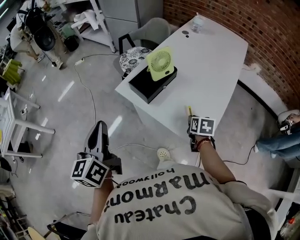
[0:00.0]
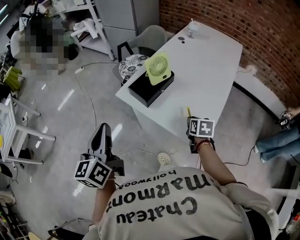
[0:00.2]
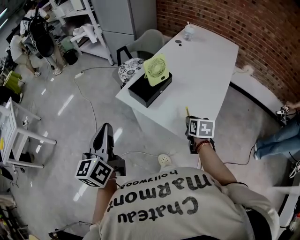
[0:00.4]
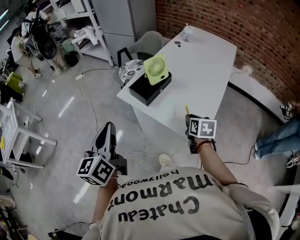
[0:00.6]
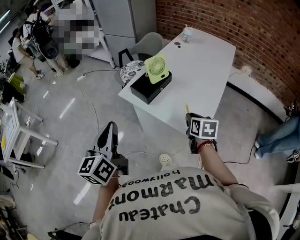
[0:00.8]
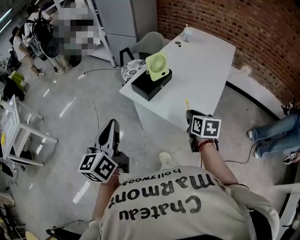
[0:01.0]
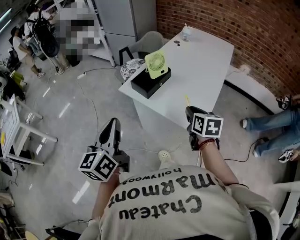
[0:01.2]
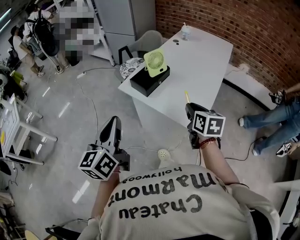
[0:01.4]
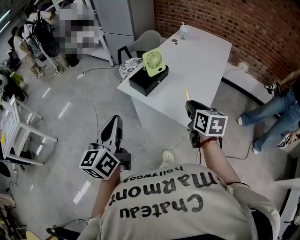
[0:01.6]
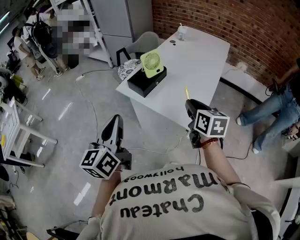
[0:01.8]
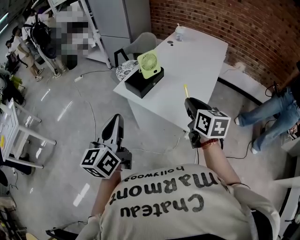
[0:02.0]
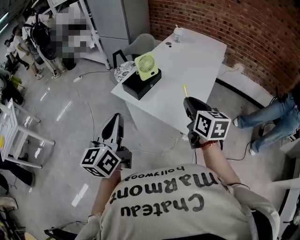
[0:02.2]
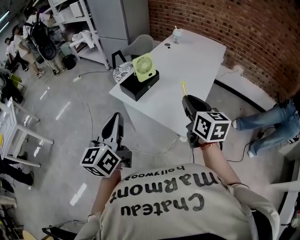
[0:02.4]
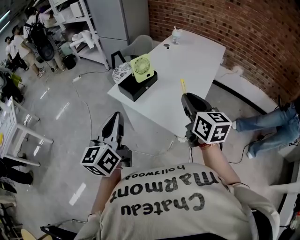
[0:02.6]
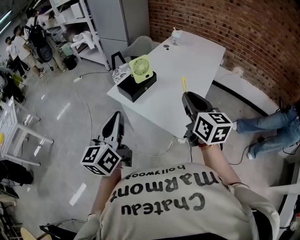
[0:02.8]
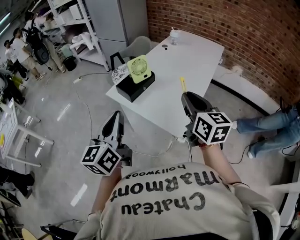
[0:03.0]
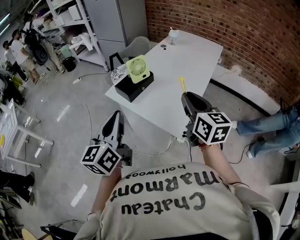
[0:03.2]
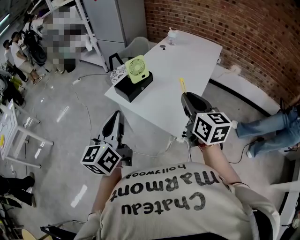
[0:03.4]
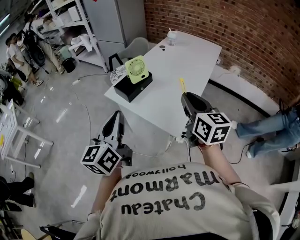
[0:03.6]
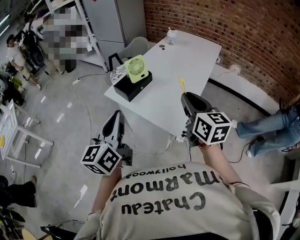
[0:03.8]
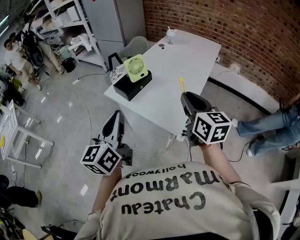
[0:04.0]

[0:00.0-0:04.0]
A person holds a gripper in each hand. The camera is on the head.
0:00.0 to 0:01.4: The left gripper goes approximately 10 cm backward. Meanwhile the right gripper shifts roughly 20 cm upward and backward, and changes its angle by approximately 20 degrees.
0:01.4 to 0:02.6: The left gripper heads to the right, covering some 10 cm; the right gripper travels upward and to the right by approximately 15 cm.
0:02.6 to 0:04.0: The grippers move only a little.

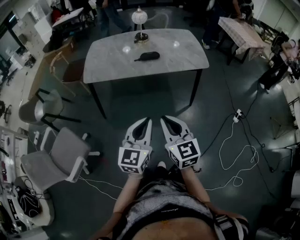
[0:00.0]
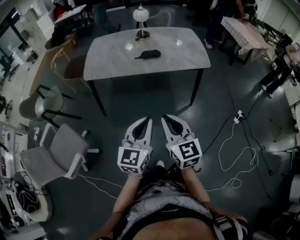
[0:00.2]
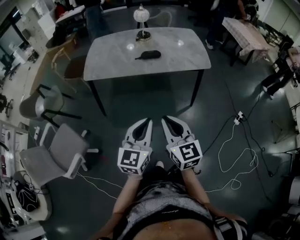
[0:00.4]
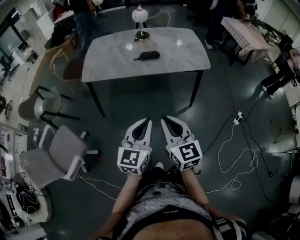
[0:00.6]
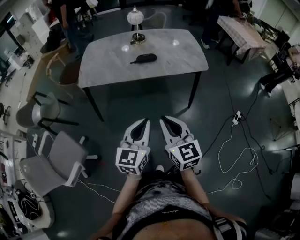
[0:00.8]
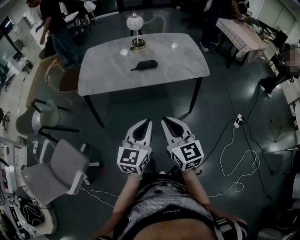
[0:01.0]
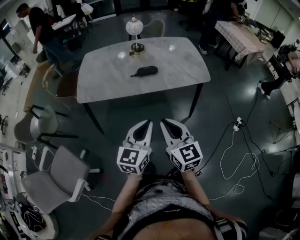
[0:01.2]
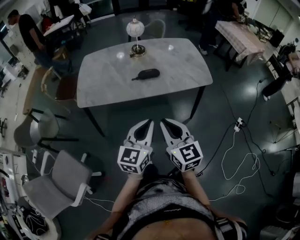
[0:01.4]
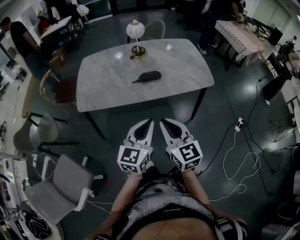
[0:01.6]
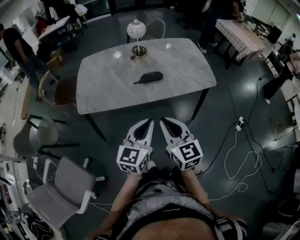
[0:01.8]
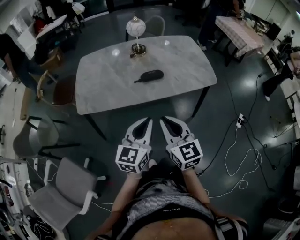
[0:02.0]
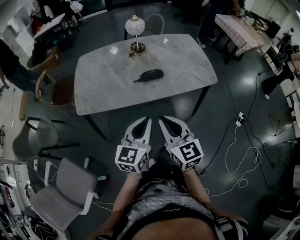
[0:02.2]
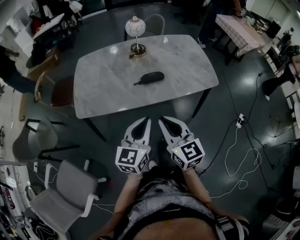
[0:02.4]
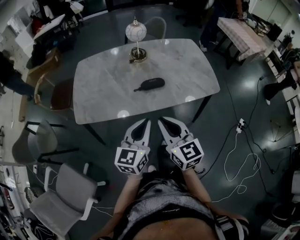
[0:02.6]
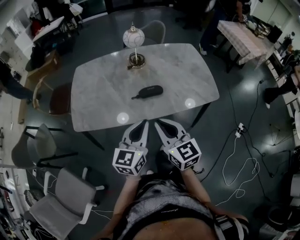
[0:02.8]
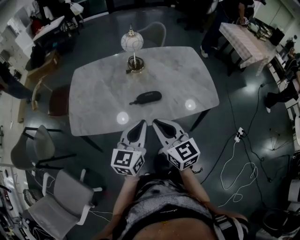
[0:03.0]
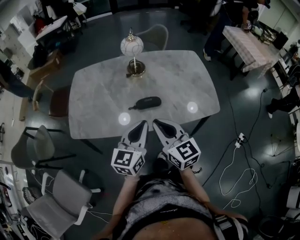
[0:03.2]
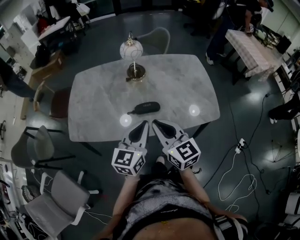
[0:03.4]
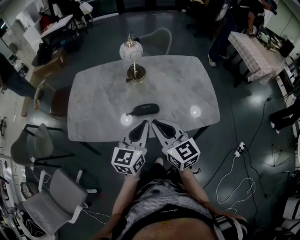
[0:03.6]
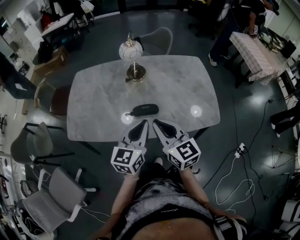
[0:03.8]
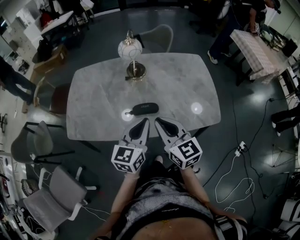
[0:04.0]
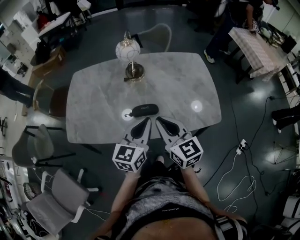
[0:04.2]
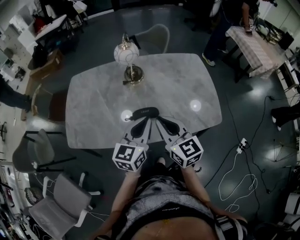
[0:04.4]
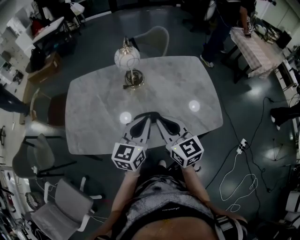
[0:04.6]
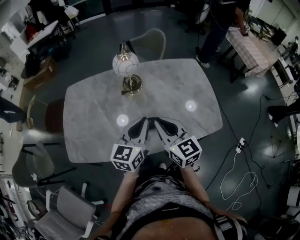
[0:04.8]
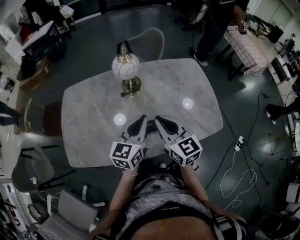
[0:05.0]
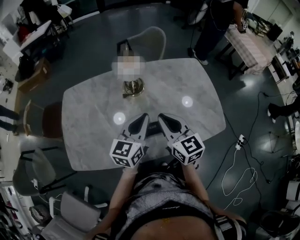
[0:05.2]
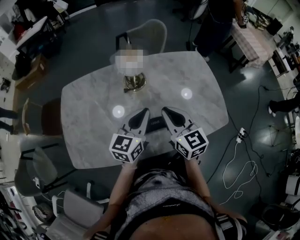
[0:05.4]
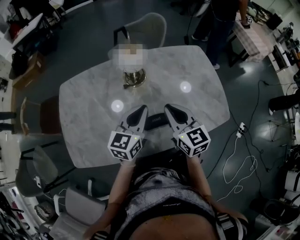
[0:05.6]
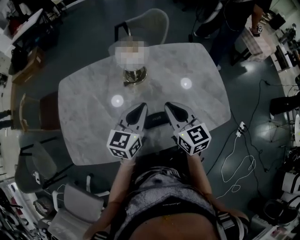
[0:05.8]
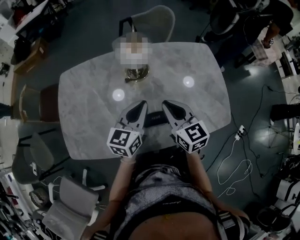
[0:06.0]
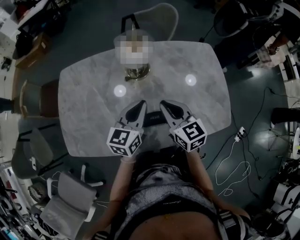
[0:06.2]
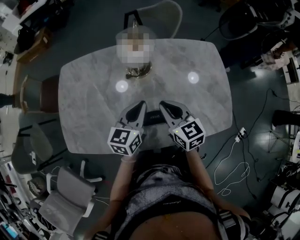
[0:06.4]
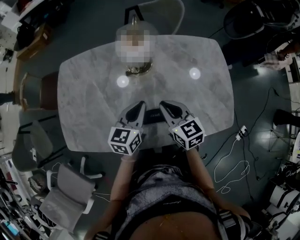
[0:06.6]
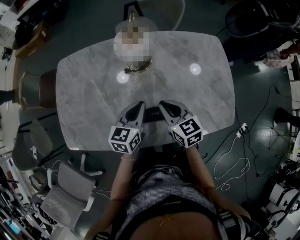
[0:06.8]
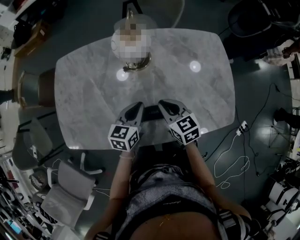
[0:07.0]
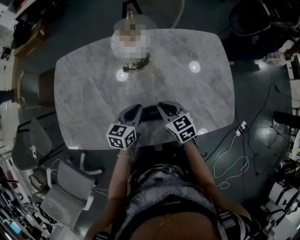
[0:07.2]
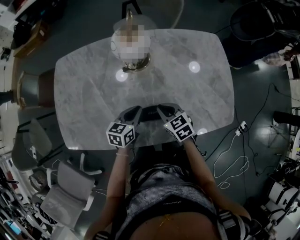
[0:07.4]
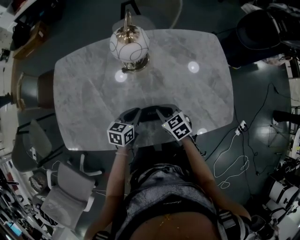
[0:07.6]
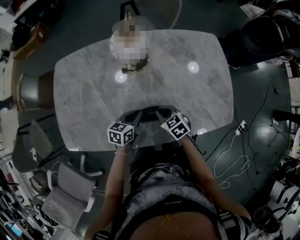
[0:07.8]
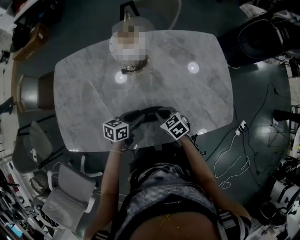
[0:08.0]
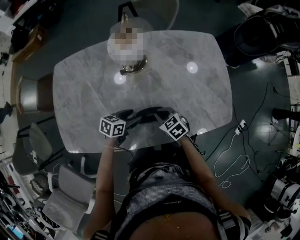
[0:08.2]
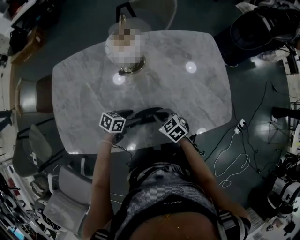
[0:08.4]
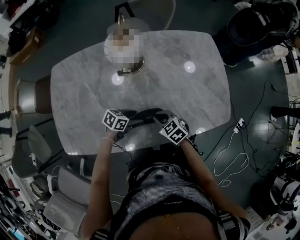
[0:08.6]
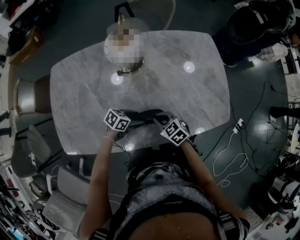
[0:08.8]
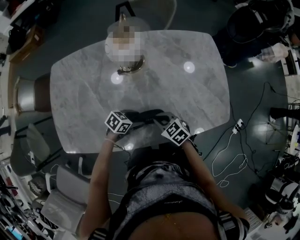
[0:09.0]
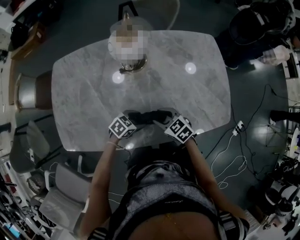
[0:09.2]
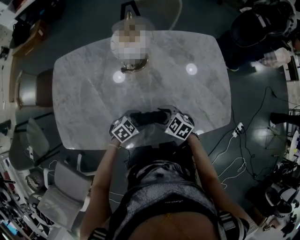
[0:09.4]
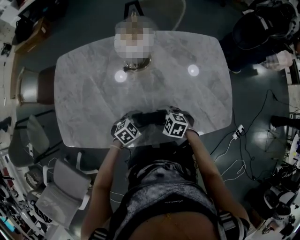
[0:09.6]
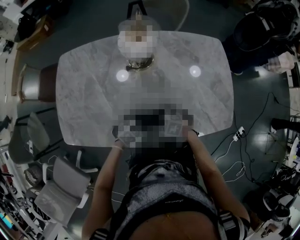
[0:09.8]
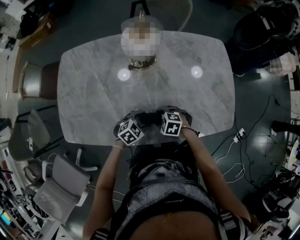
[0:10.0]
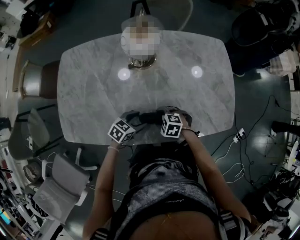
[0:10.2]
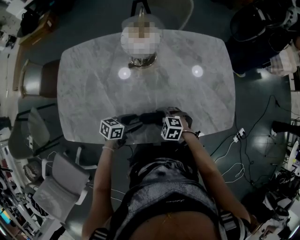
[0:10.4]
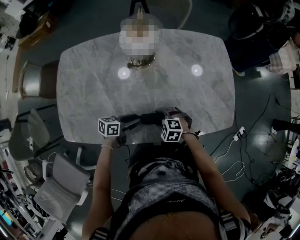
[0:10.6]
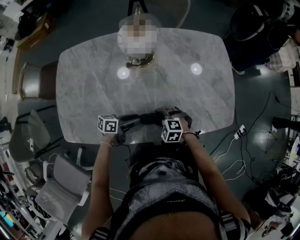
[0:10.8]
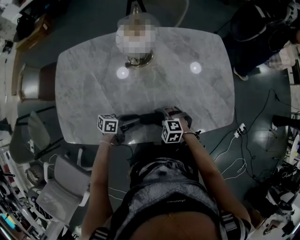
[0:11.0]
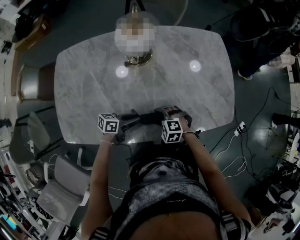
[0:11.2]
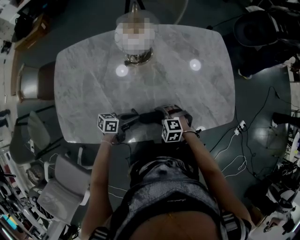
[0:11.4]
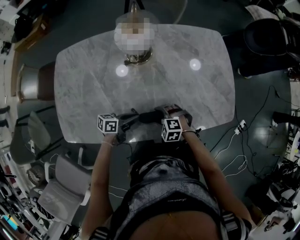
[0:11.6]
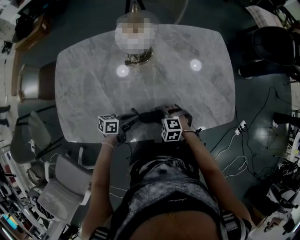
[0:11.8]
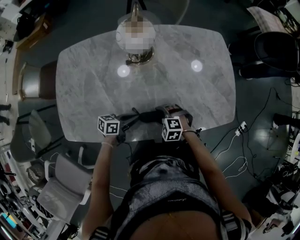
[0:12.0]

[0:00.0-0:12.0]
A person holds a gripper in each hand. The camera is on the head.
0:00.0 to 0:01.6: The grippers both shift forward by some 20 cm.
0:01.6 to 0:03.0: The grippers both shift forward by some 20 cm.
0:03.0 to 0:04.4: The two grippers go approximately 15 cm forward and to the right.
0:04.4 to 0:06.0: The left gripper travels forward and to the left by approximately 20 cm, while the right gripper moves forward, some 15 cm.
0:06.0 to 0:07.6: The two grippers go approximately 20 cm downward. The right gripper turns by some 30 degrees, while the left gripper swivels roughly 30 degrees.
0:07.6 to 0:09.0: The left gripper goes roughly 5 cm downward, turns by roughly 40 degrees, and opens up.
0:09.0 to 0:10.4: The right gripper heads downward, covering about 5 cm, rotates approximately 40 degrees, and opens up; the left gripper ends up some 5 cm from where it was, and rotates some 30 degrees.
0:10.4 to 0:12.0: The left gripper closes up.

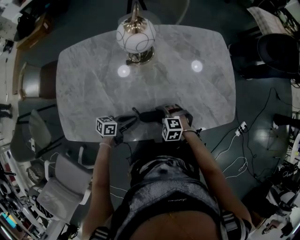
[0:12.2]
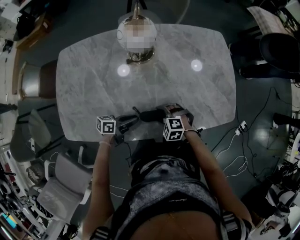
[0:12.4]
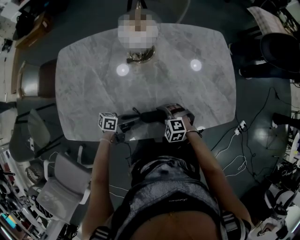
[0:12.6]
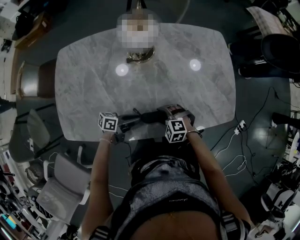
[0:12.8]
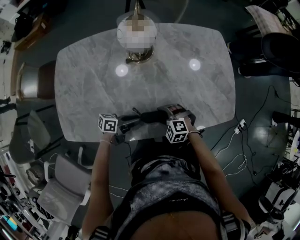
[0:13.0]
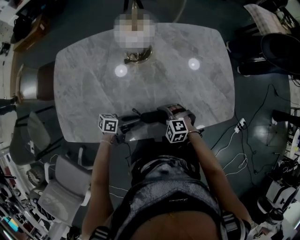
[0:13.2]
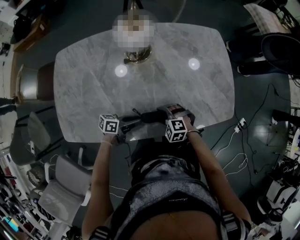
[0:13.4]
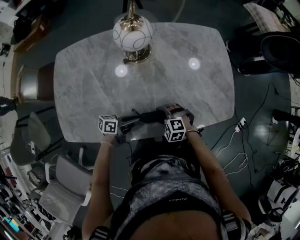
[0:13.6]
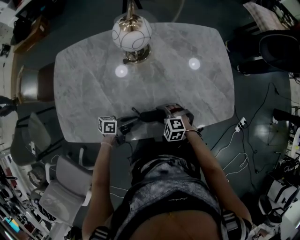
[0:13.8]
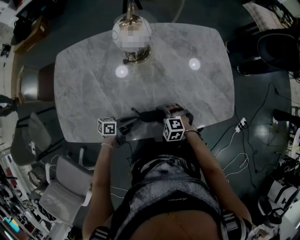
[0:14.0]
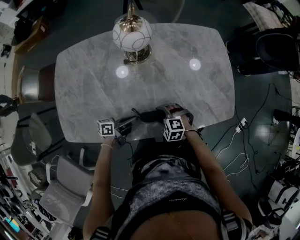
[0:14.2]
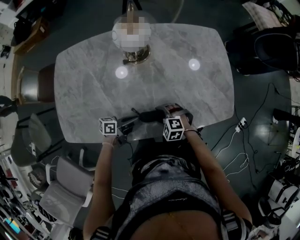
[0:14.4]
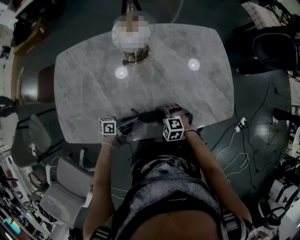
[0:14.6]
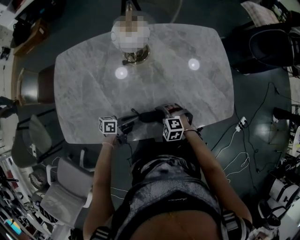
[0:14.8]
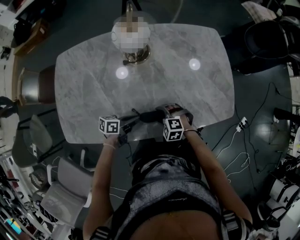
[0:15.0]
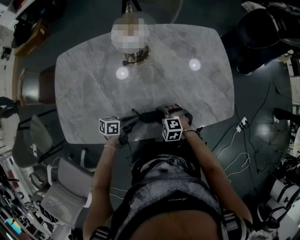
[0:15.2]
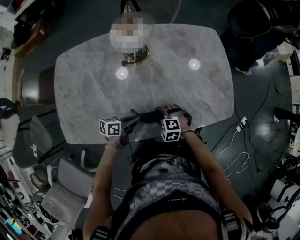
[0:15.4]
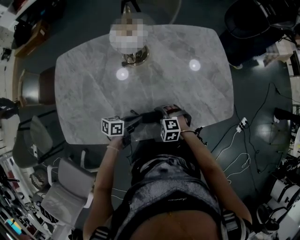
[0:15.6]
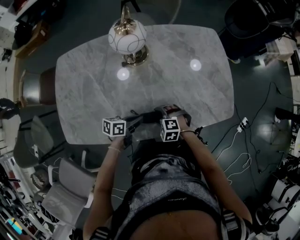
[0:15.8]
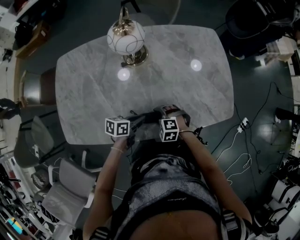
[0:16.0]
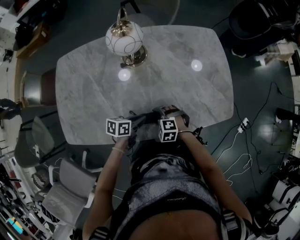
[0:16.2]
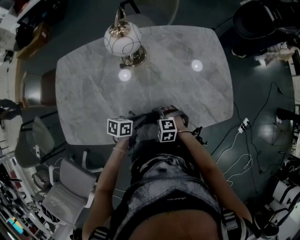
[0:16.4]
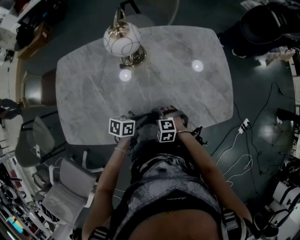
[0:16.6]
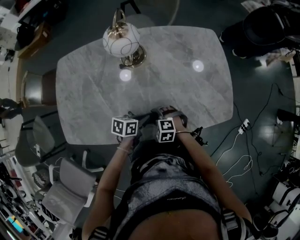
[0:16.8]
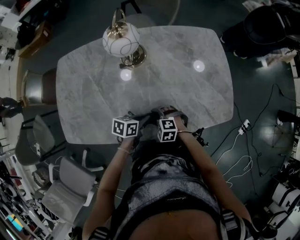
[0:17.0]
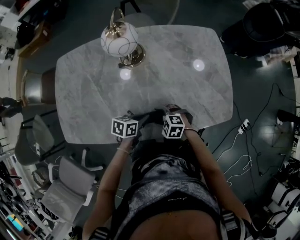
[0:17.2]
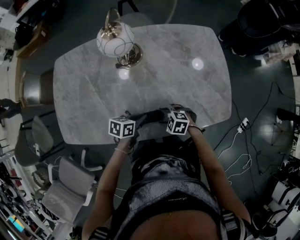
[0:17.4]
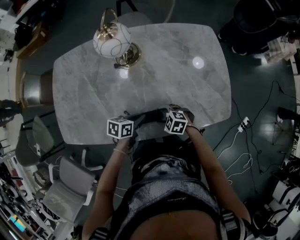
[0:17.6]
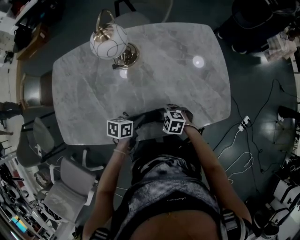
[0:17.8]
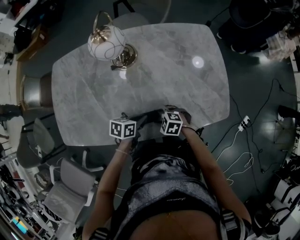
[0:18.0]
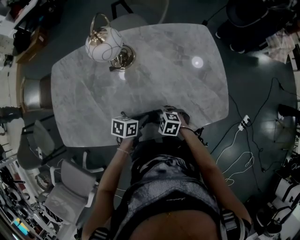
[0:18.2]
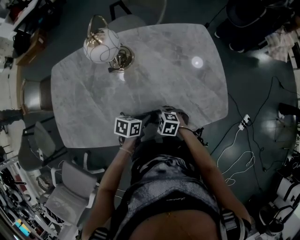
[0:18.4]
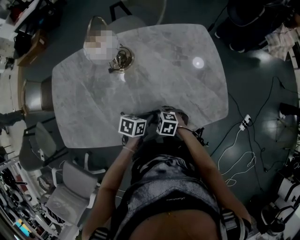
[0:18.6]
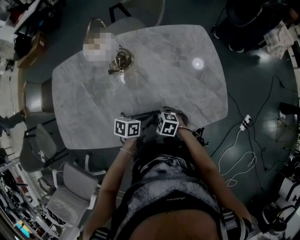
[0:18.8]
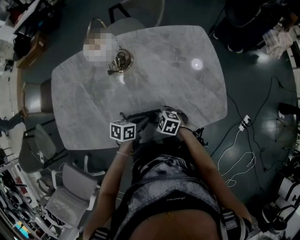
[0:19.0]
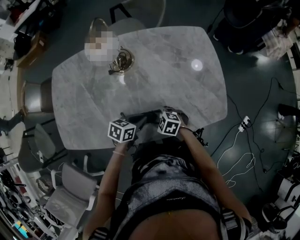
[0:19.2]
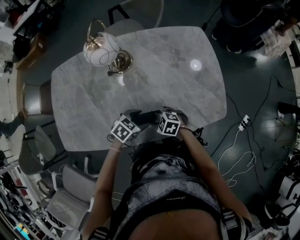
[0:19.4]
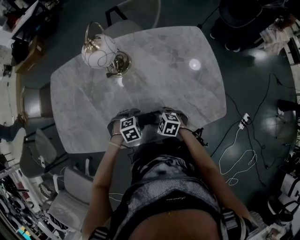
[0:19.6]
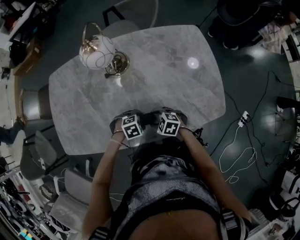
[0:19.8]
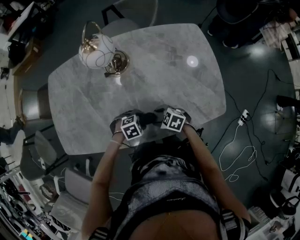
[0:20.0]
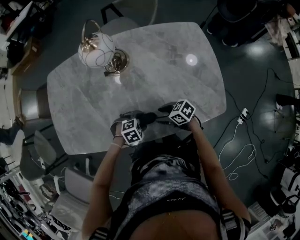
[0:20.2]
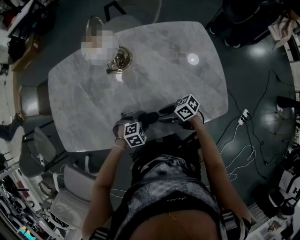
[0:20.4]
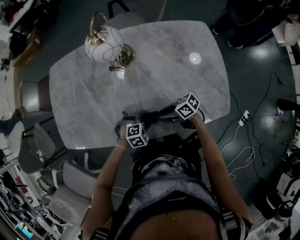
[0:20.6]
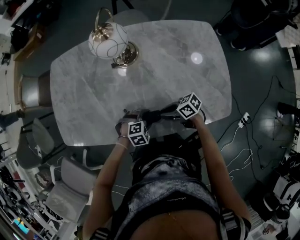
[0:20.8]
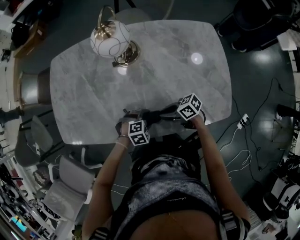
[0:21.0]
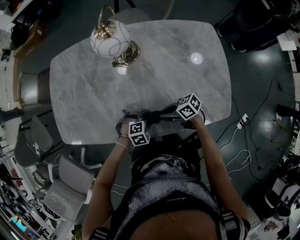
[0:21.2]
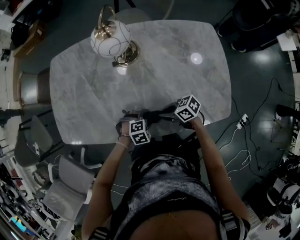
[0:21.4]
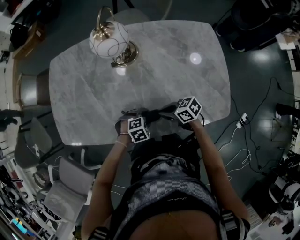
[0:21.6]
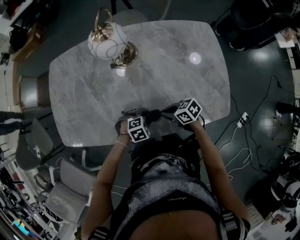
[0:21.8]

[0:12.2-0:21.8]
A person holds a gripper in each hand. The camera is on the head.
0:12.2 to 0:15.4: The grippers make only small movements.
0:15.4 to 0:17.0: The left gripper changes place by some 5 cm.
0:17.0 to 0:18.6: The left gripper shifts by about 5 cm, while the right gripper changes place by some 5 cm.
0:18.6 to 0:20.2: The right gripper shifts by about 5 cm, and turns by some 40 degrees, while the left gripper travels downward by roughly 5 cm, rotates around the line of its fingers by roughly 60 degrees, clockwise from behind, and opens its fingers.
0:20.2 to 0:21.8: The right gripper closes.
